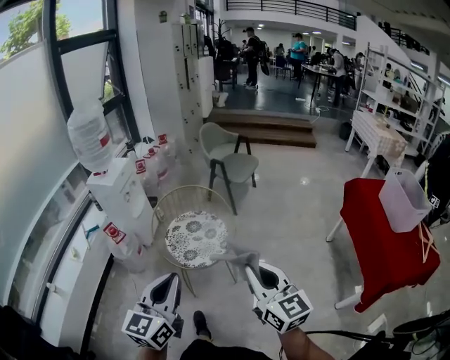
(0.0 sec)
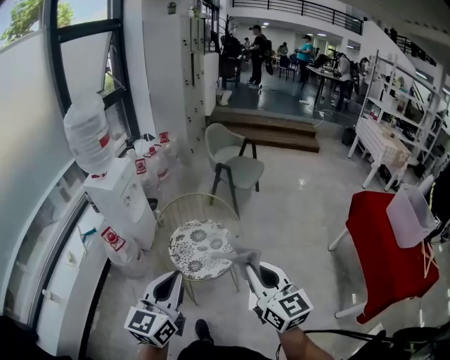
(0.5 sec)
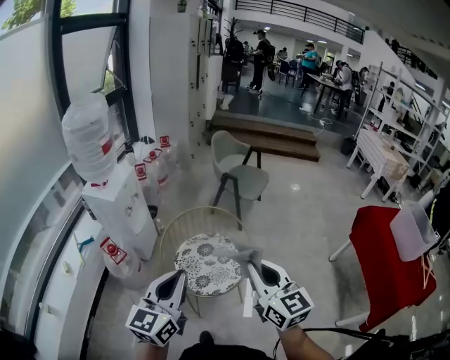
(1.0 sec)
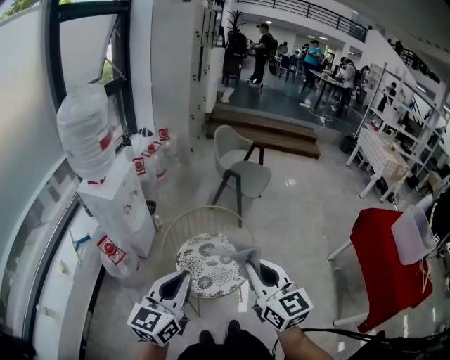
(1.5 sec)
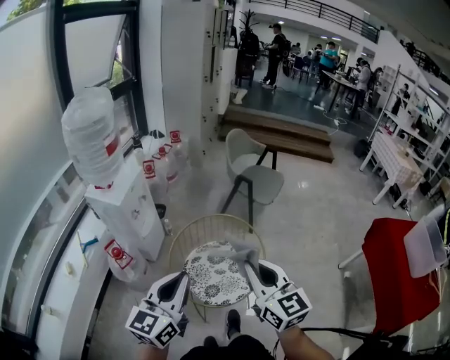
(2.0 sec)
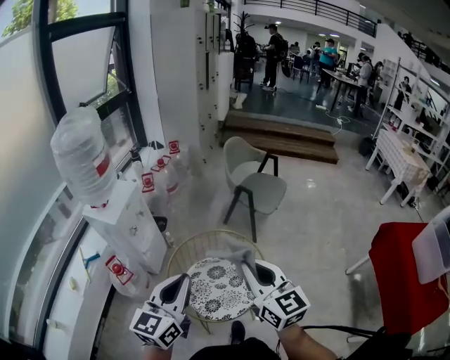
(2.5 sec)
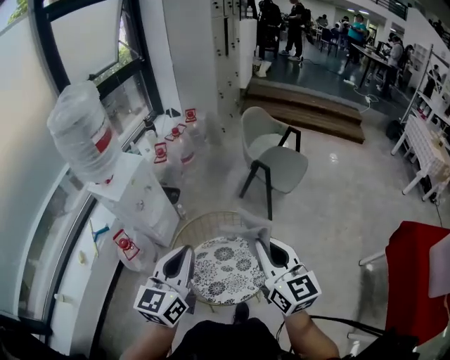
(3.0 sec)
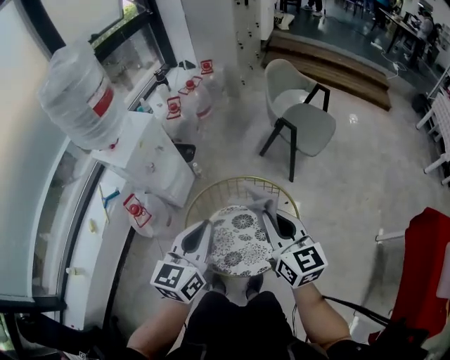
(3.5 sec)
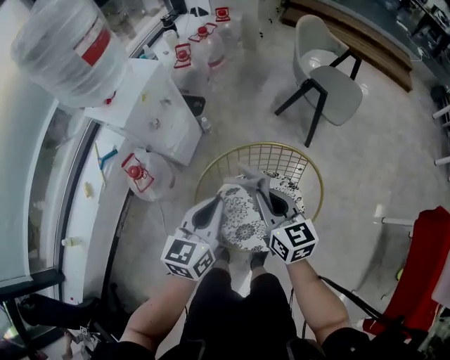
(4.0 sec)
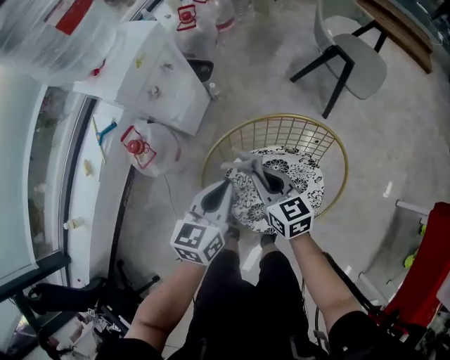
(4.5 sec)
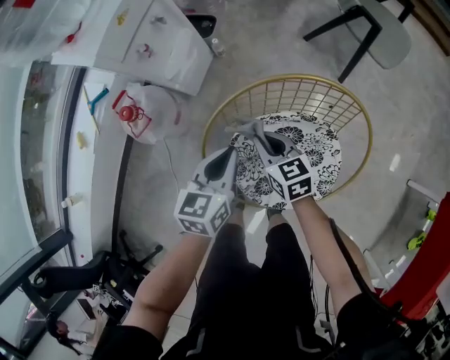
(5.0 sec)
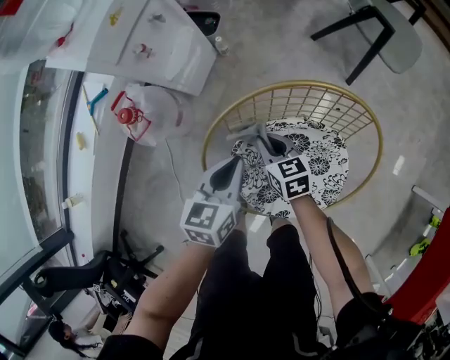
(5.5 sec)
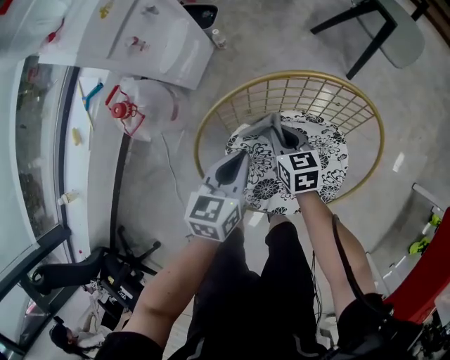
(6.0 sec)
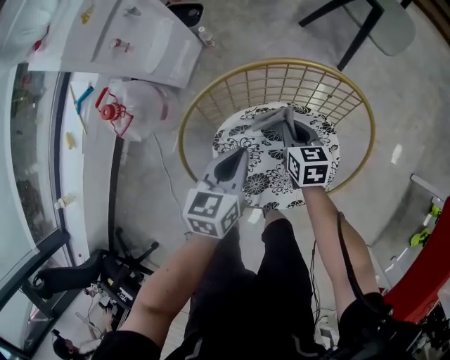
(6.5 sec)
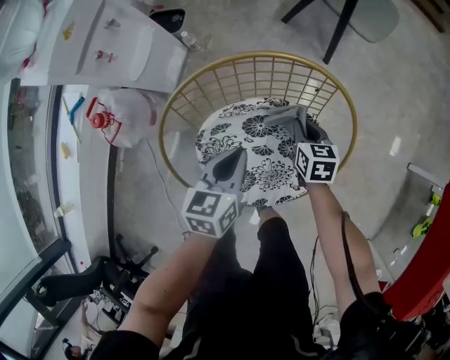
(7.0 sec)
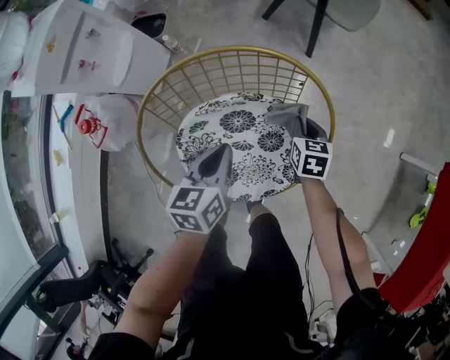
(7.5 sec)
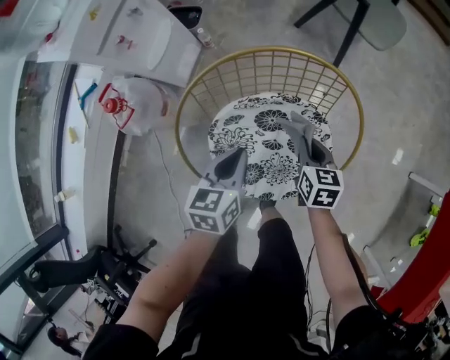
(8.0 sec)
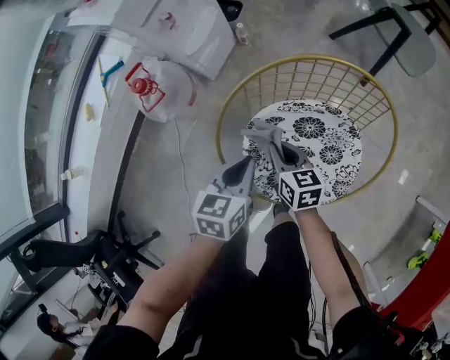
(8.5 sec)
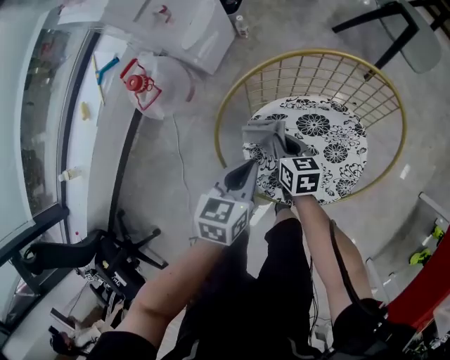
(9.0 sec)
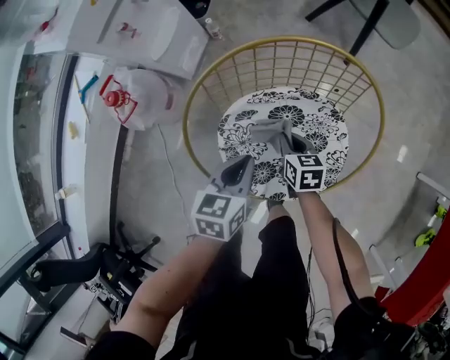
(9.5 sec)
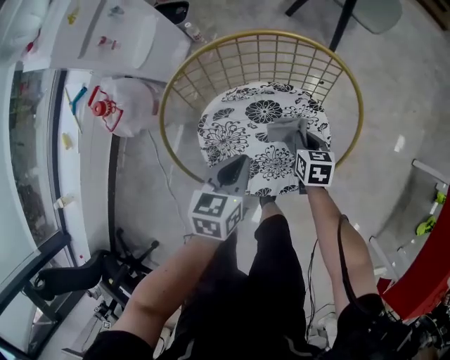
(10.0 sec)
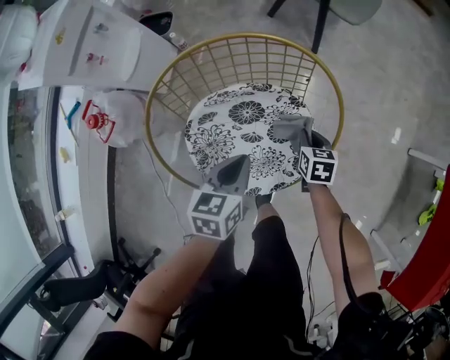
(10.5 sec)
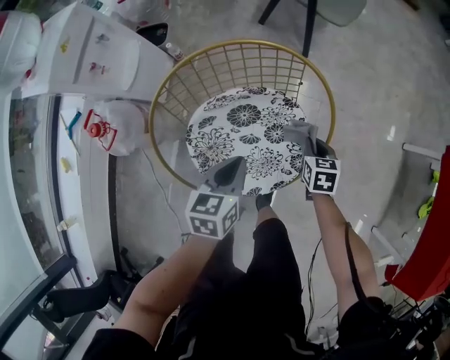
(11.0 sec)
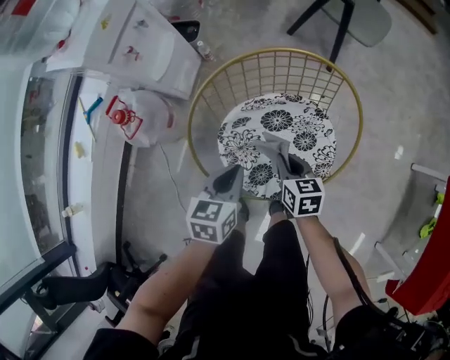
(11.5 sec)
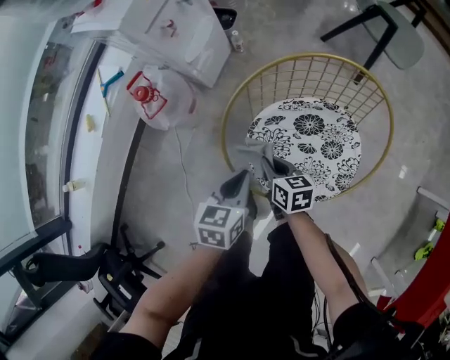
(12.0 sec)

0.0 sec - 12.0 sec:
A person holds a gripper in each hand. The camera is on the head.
0.0 sec - 2.0 sec: Both grippers travel together forward and to the left, some 35 cm.
2.0 sec - 4.0 sec: The right gripper moves downward and forward, roughly 35 cm, and swivels roughly 20 degrees. Meanwhile the left gripper goes about 30 cm forward and downward, and changes its angle by approximately 20 degrees.
4.0 sec - 6.0 sec: Both grippers move downward, approximately 25 cm. The right gripper rotates approximately 20 degrees.
6.0 sec - 8.0 sec: The left gripper is displaced to the right by approximately 5 cm. The right gripper shifts about 15 cm to the right.
8.0 sec - 10.0 sec: The right gripper travels downward by approximately 10 cm, and travels to the left and back again, about 20 cm each way. Meanwhile the left gripper travels to the left and back again, roughly 10 cm each way.
10.0 sec - 12.0 sec: The right gripper shifts by some 25 cm, and swivels roughly 30 degrees. Meanwhile the left gripper shifts by approximately 15 cm.

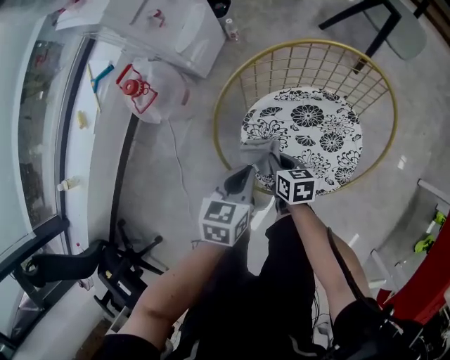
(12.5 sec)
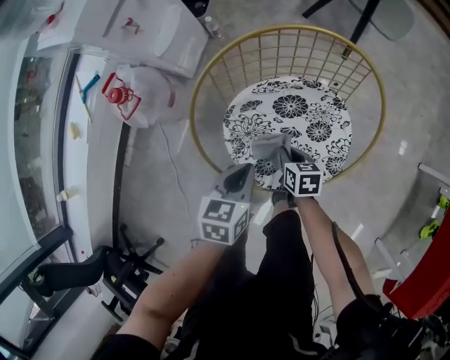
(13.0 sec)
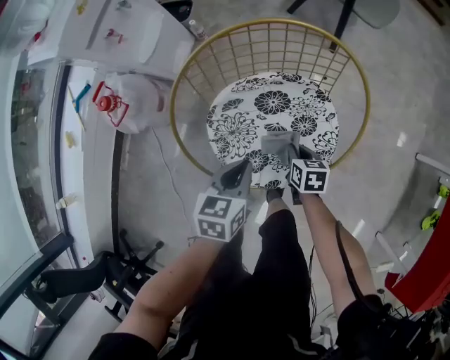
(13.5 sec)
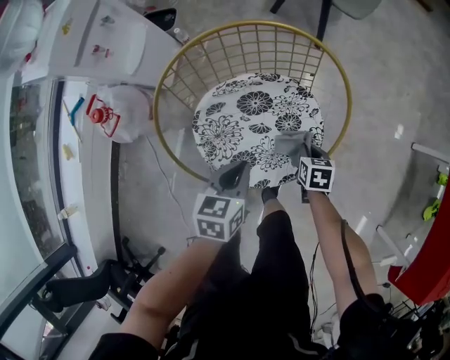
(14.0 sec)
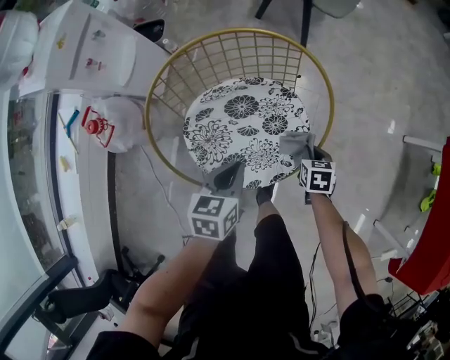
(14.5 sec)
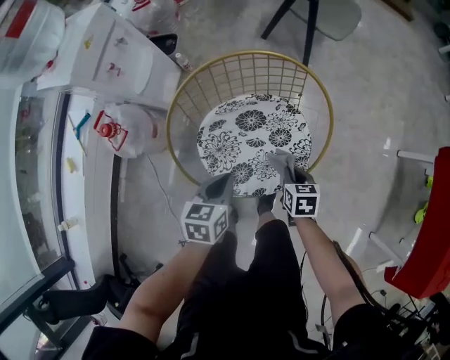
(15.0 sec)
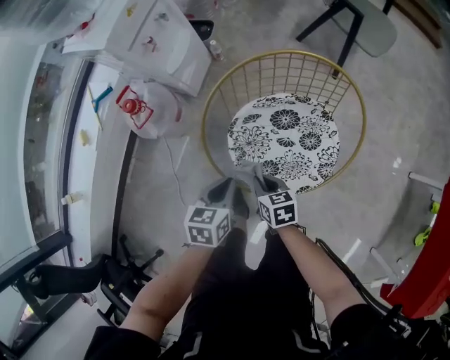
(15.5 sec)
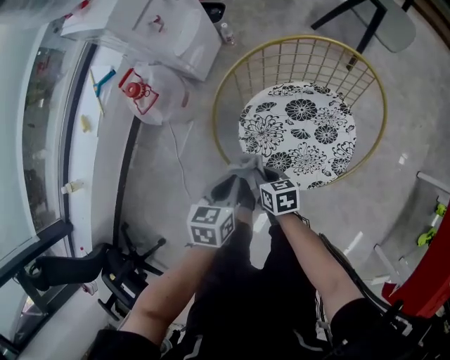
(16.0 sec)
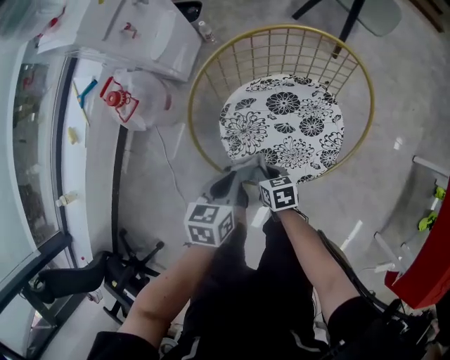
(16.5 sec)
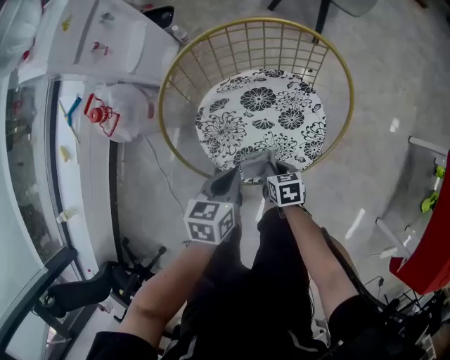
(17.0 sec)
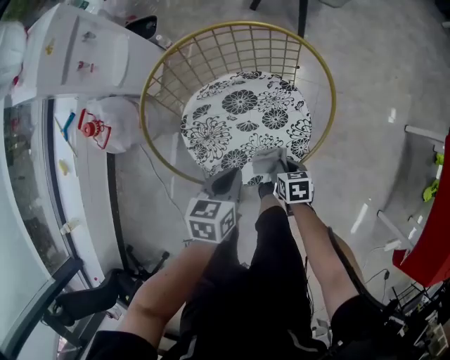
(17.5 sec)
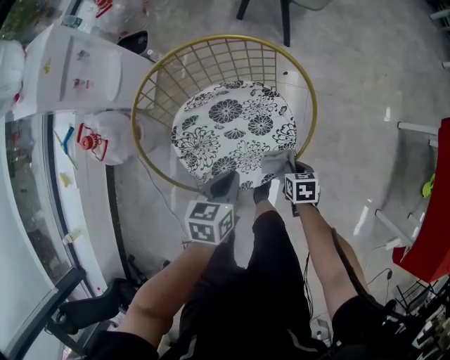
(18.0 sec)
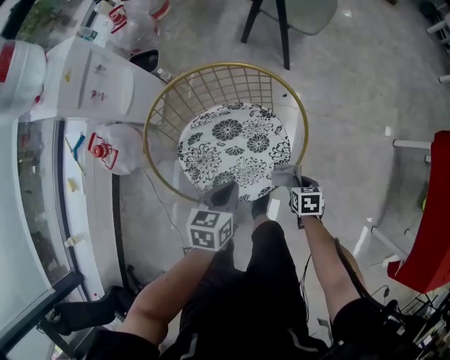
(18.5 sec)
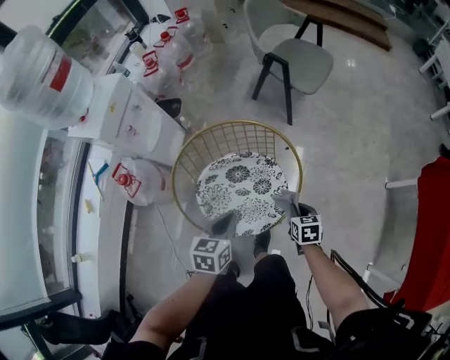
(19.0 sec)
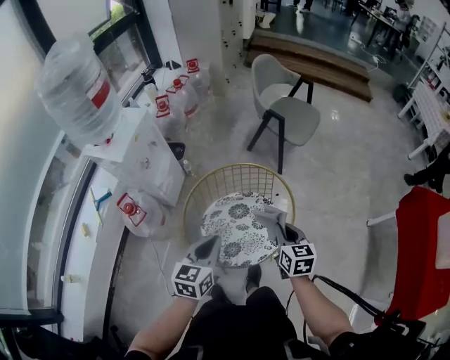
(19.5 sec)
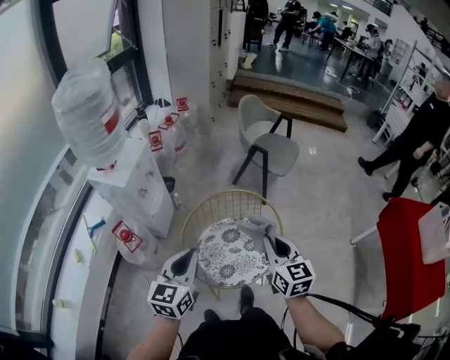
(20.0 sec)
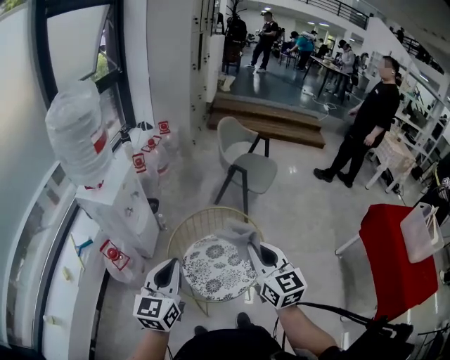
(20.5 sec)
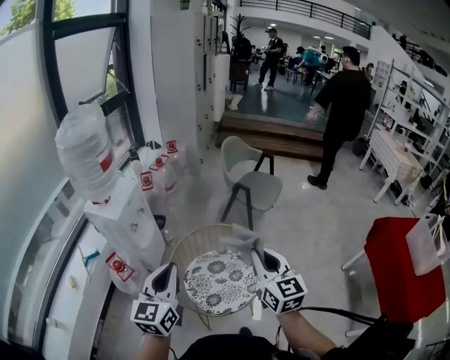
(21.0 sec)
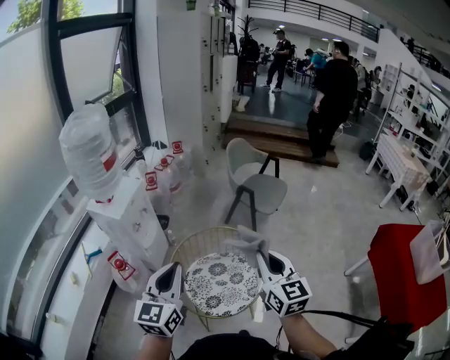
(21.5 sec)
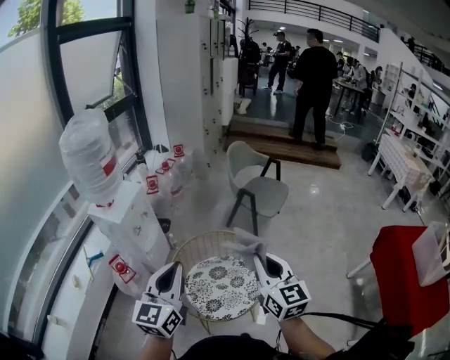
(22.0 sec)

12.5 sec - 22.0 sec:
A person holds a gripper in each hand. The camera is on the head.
12.5 sec - 14.5 sec: The left gripper moves approximately 15 cm. Meanwhile the right gripper shifts by roughly 30 cm, and changes its angle by roughly 30 degrees.
14.5 sec - 16.5 sec: The right gripper reaches about 10 cm upward, then returns, and turns by some 30 degrees. Meanwhile the left gripper shifts by roughly 15 cm.
16.5 sec - 18.0 sec: The right gripper is displaced to the right by about 25 cm, and rotates approximately 20 degrees. The left gripper shifts about 15 cm to the right.
18.0 sec - 20.0 sec: The left gripper travels upward and to the left by some 40 cm, and angles its fingers upward, by roughly 30 degrees; the right gripper shifts some 50 cm upward, and angles its fingers upward, by approximately 50 degrees.
20.0 sec - 22.0 sec: The grippers both shift upward and to the right by roughly 15 cm.

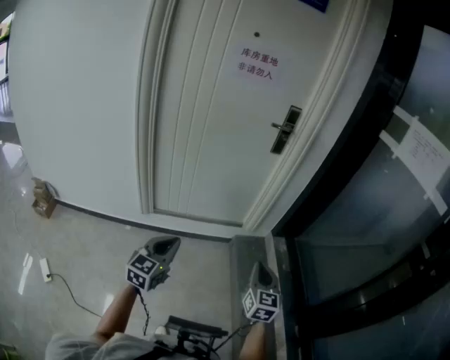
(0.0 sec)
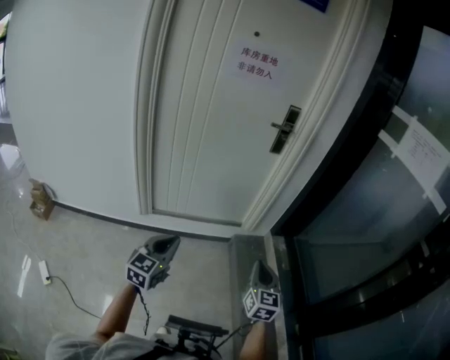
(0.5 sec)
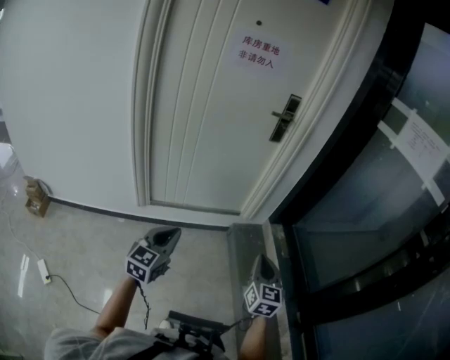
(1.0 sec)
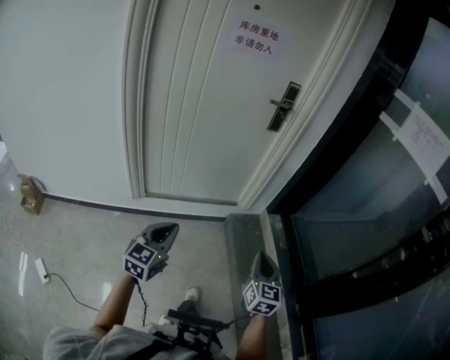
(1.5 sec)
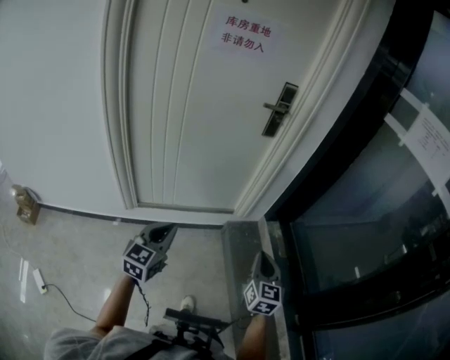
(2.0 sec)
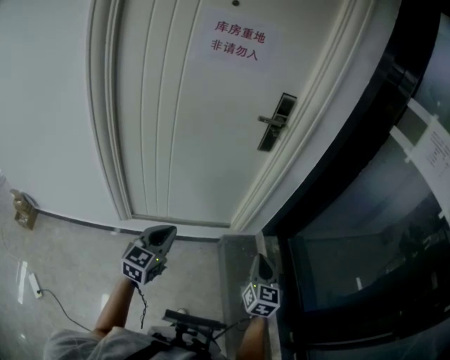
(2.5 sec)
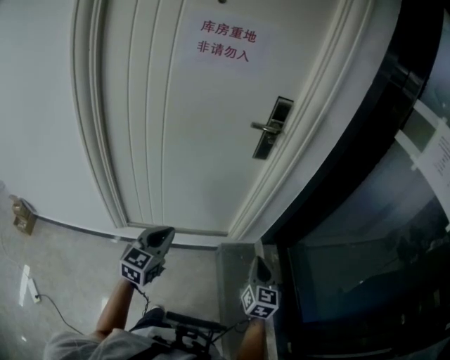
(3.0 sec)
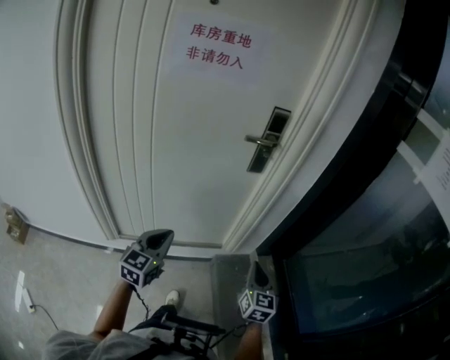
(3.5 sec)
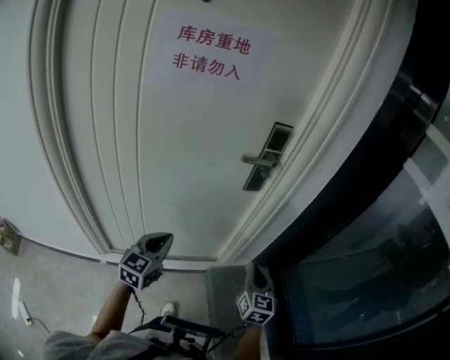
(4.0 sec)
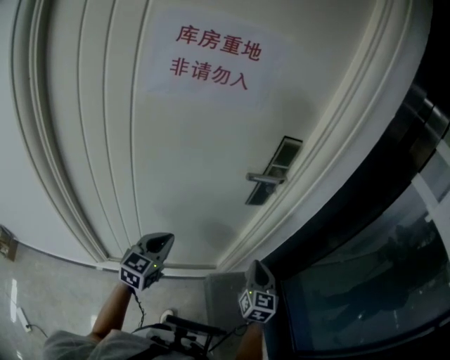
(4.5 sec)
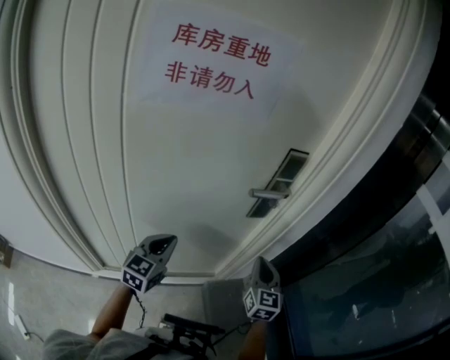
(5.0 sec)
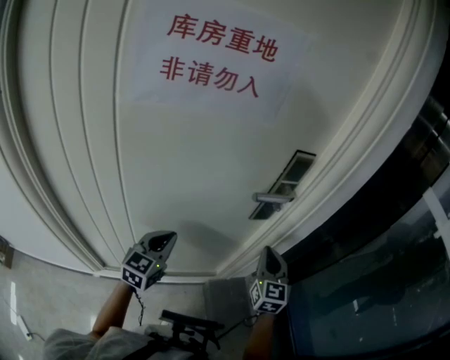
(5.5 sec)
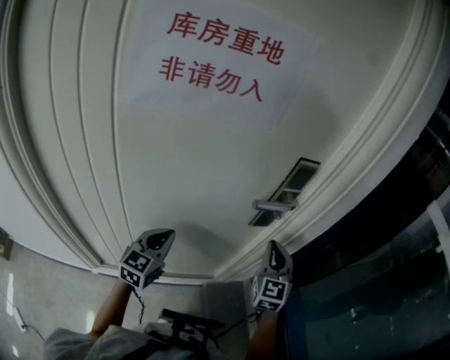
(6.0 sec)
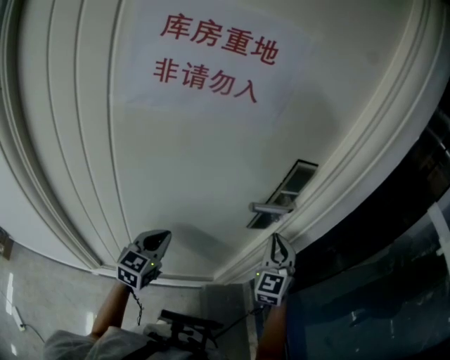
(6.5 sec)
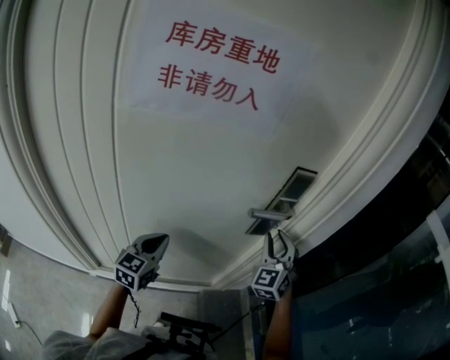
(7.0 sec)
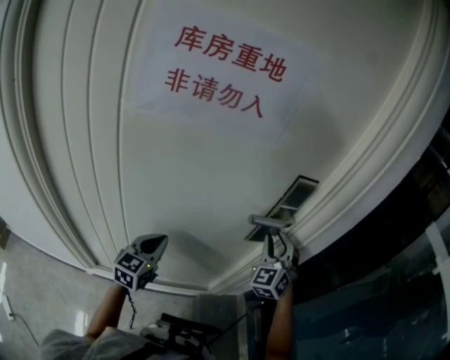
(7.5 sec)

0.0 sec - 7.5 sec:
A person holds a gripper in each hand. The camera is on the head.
0.0 sec - 2.0 sec: The two grippers go some 10 cm forward.
2.0 sec - 4.0 sec: Both grippers move forward, about 35 cm.
4.0 sec - 5.5 sec: The left gripper is displaced forward by approximately 15 cm; the right gripper shifts some 20 cm forward and upward.
5.5 sec - 7.5 sec: The right gripper shifts some 10 cm forward and upward, rolls counterclockwise, seen from behind, by some 40 degrees, and opens its fingers.
